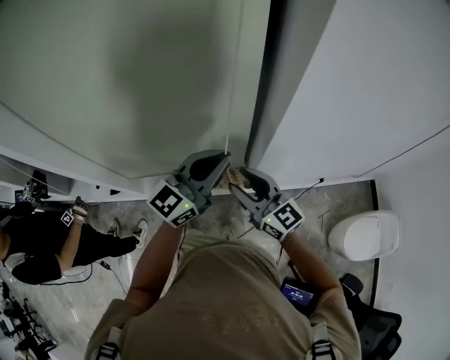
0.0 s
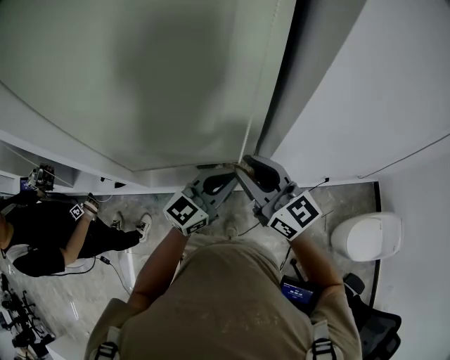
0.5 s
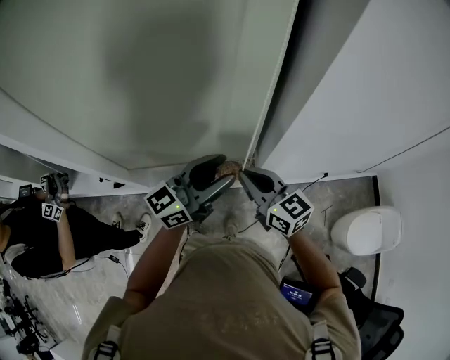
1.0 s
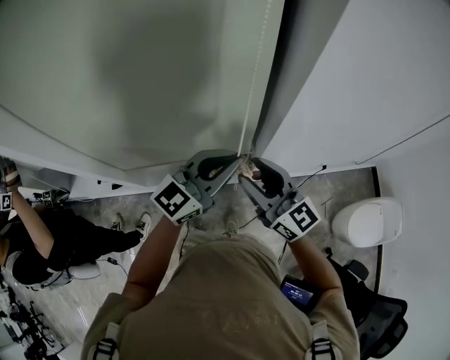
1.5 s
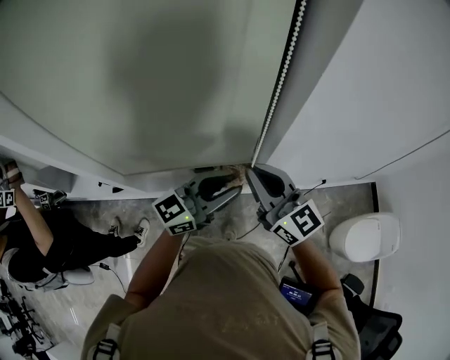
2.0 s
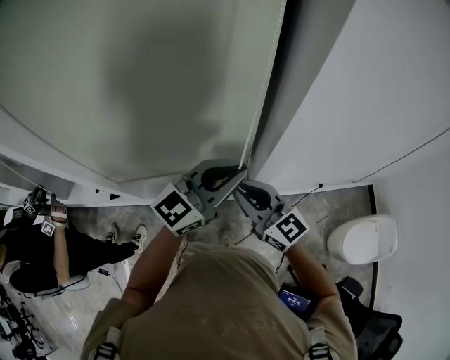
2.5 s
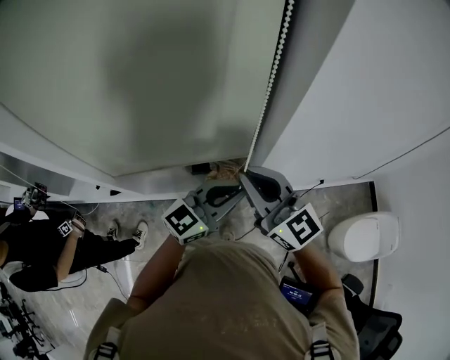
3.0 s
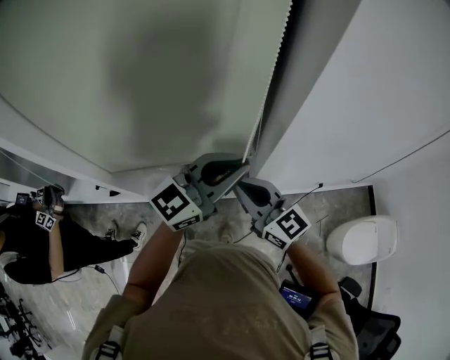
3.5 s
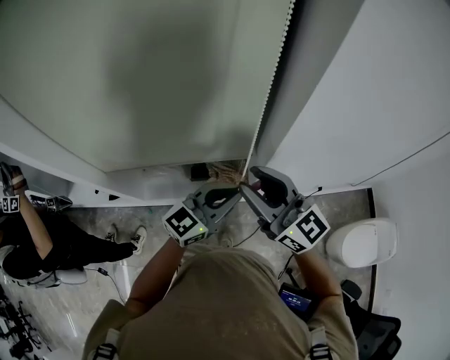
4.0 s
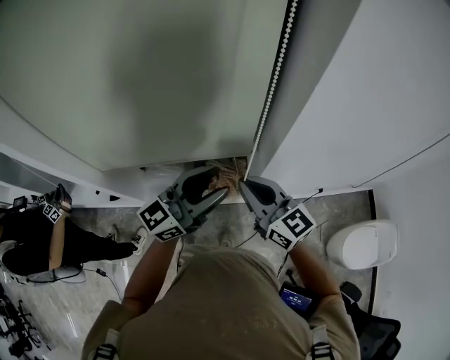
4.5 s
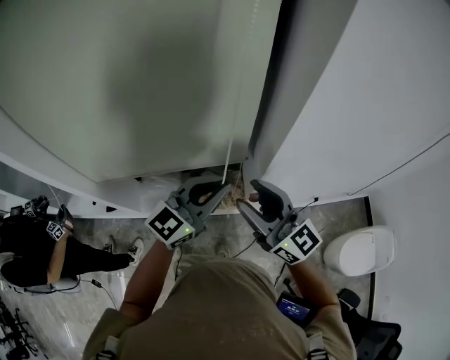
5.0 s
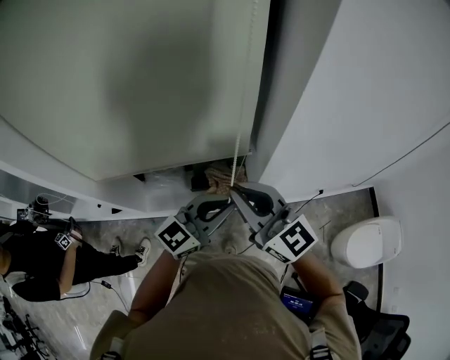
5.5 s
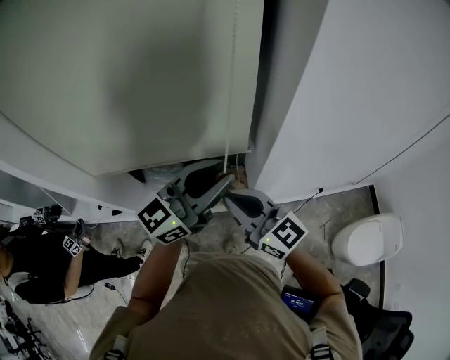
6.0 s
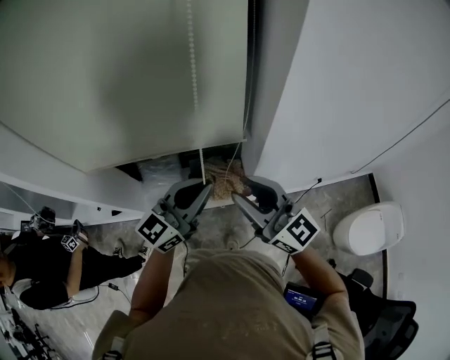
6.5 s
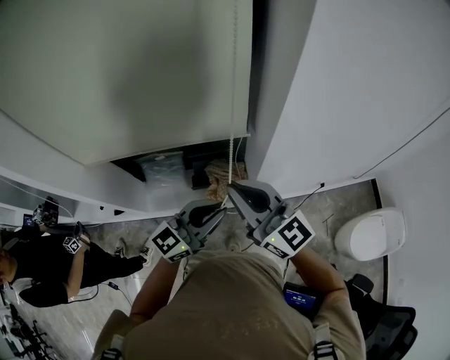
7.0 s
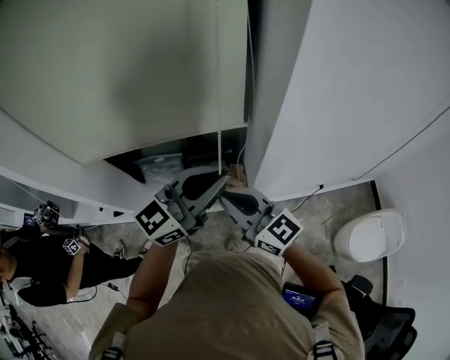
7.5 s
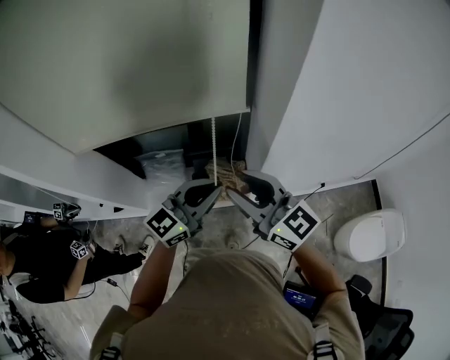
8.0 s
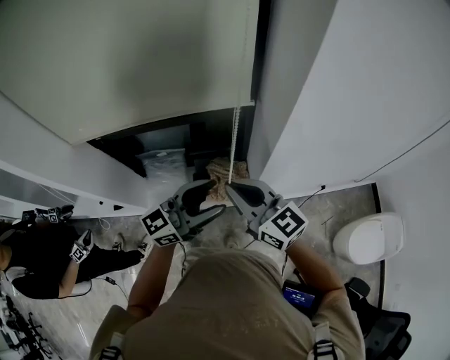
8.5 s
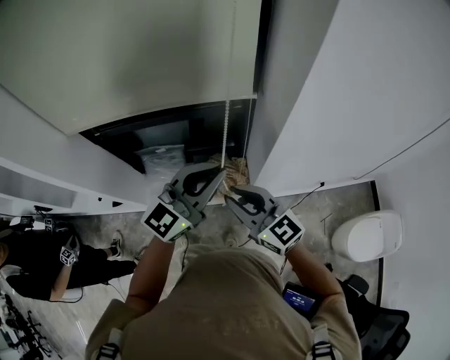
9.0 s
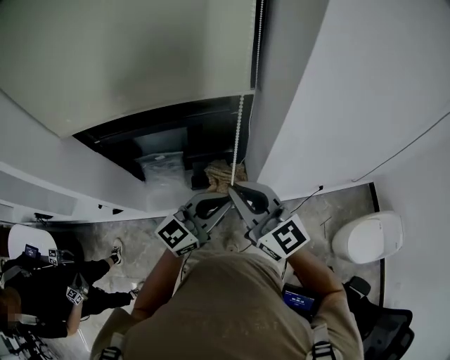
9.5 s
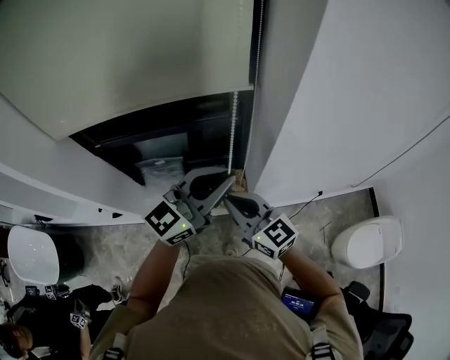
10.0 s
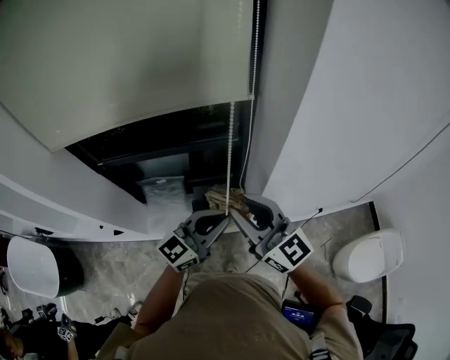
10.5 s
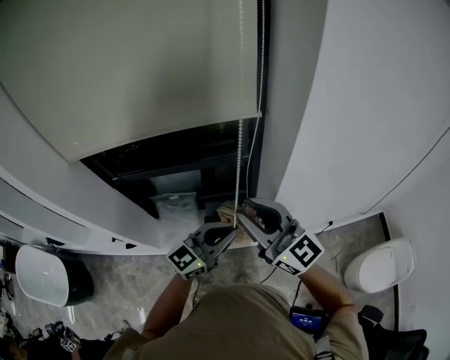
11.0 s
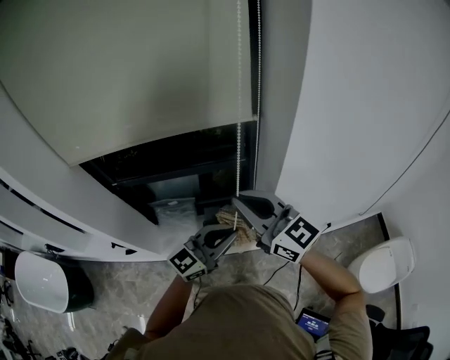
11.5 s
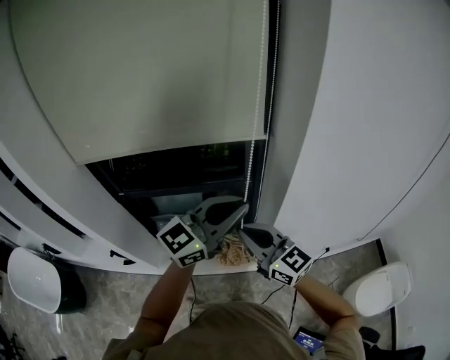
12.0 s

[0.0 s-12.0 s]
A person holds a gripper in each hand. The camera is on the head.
0.0 to 2.0 s: The right gripper moves up and down over about 10 cm, changing direction 2 times, and closes its fingers. Meanwhile the left gripper shifts some 5 cm backward, and opens and closes again.
2.0 to 4.0 s: The left gripper swings up and down, some 10 cm each way, with 3 reversals. Meanwhile the right gripper moves up and down over approximately 10 cm, changing direction 3 times, and opens.
4.0 to 6.0 s: The left gripper moves up and down over roughly 15 cm, changing direction 2 times, and opens. The right gripper moves up and down over about 5 cm, changing direction 2 times, and closes.
6.0 to 8.0 s: The right gripper opens, while the left gripper swings up and down, approximately 15 cm each way, with 2 reversals, and closes up.
8.0 to 10.0 s: The left gripper goes up and down, approximately 10 cm each way, reversing 2 times, and opens, then closes once more, while the right gripper swings up and down, about 5 cm each way, with 2 reversals, and closes its fingers.
10.0 to 12.0 s: The grippers both shift upward by roughly 10 cm. The right gripper opens, then closes again.

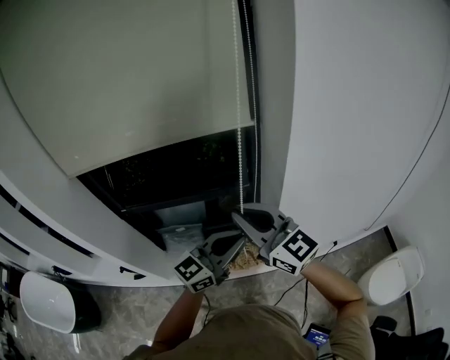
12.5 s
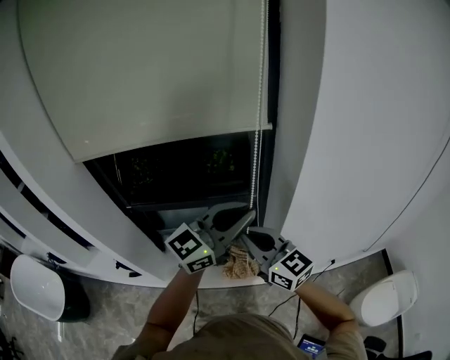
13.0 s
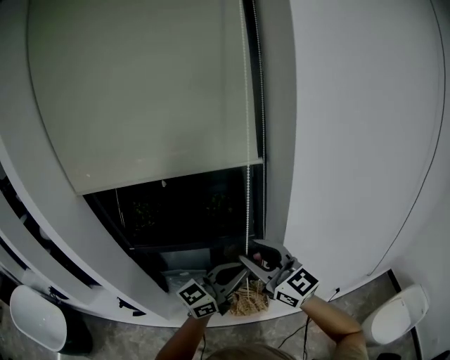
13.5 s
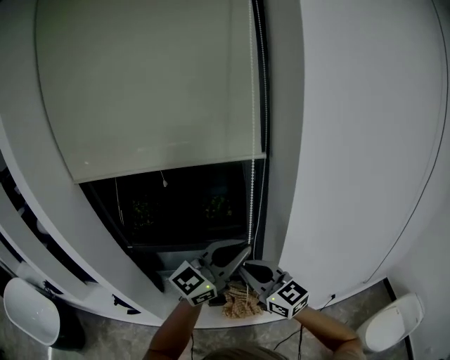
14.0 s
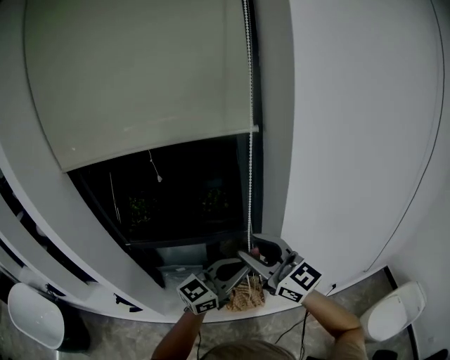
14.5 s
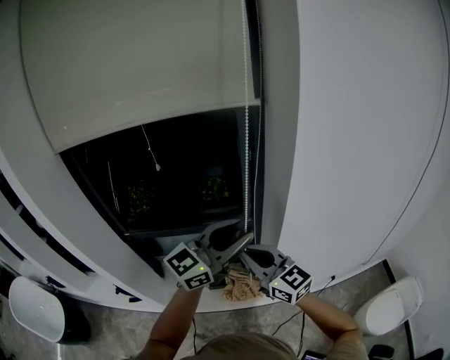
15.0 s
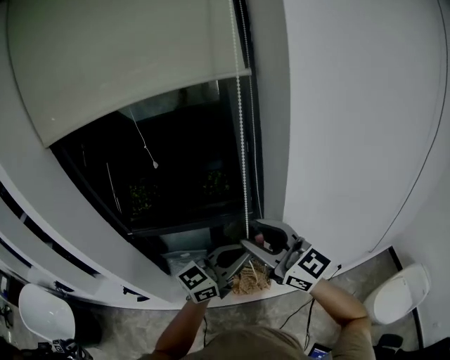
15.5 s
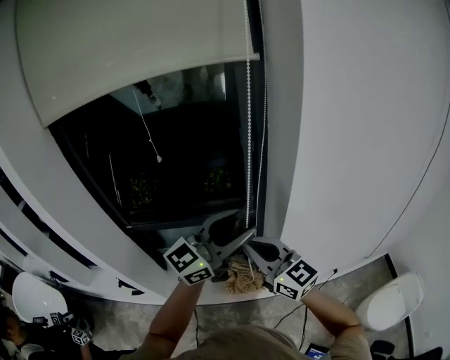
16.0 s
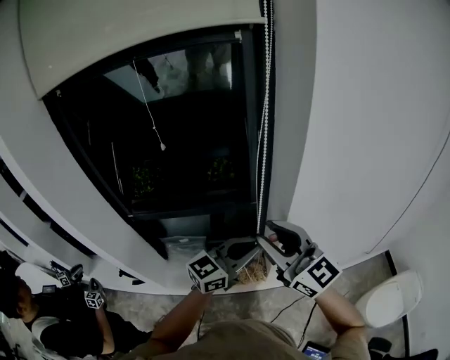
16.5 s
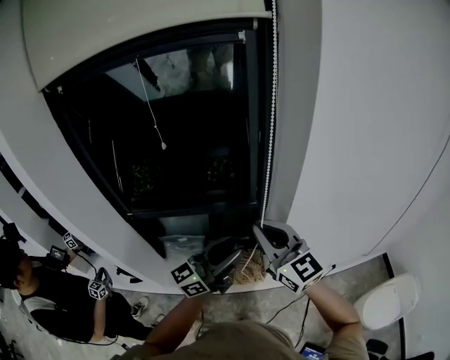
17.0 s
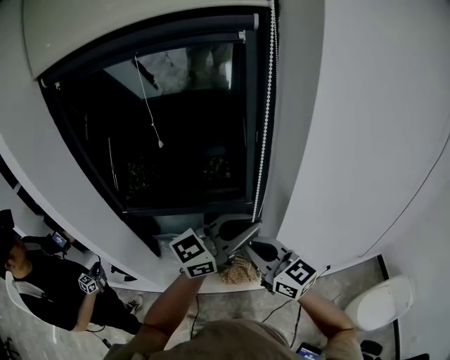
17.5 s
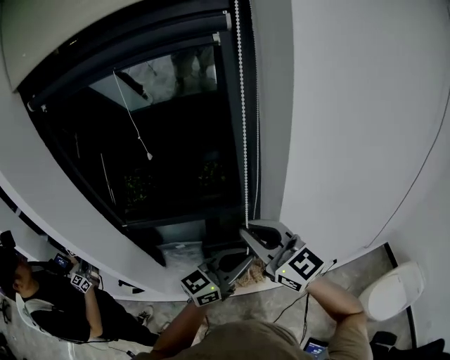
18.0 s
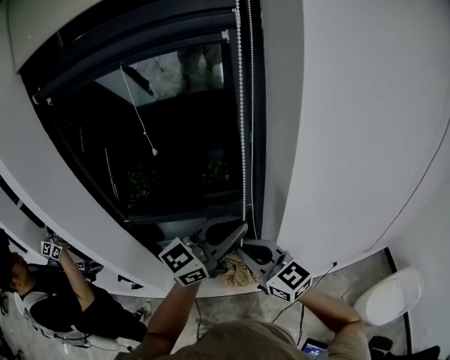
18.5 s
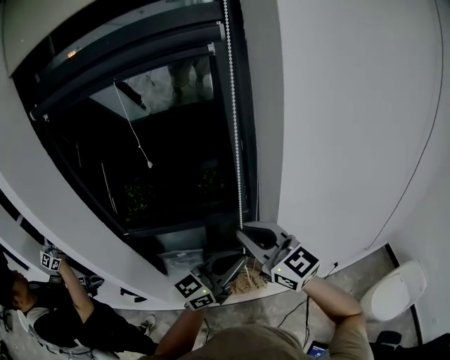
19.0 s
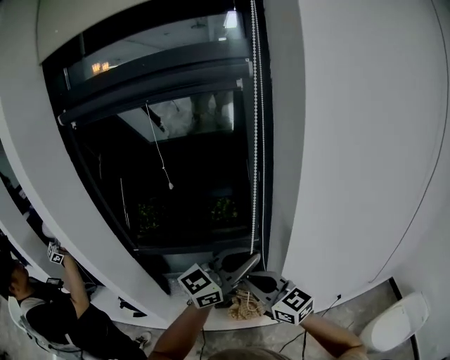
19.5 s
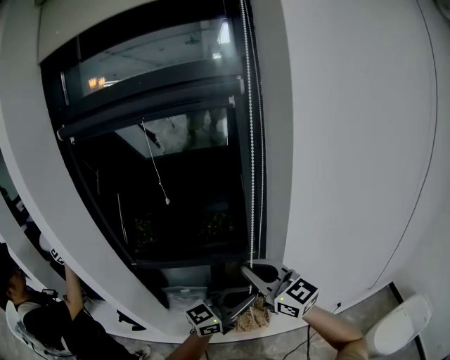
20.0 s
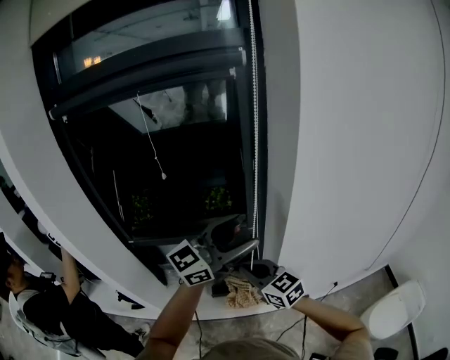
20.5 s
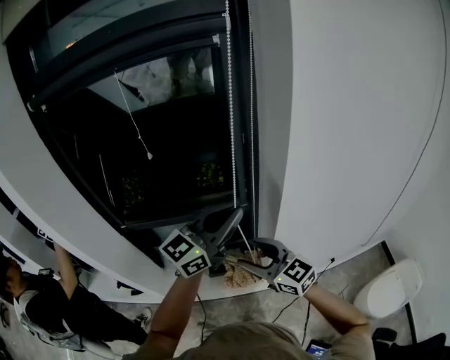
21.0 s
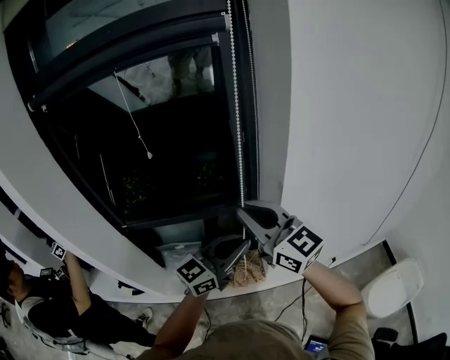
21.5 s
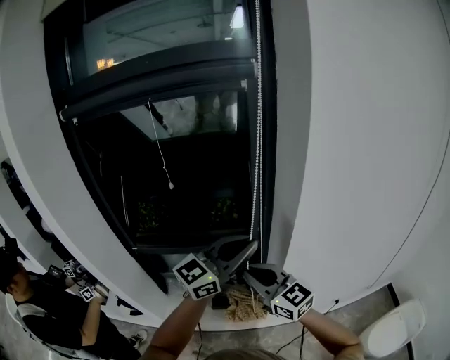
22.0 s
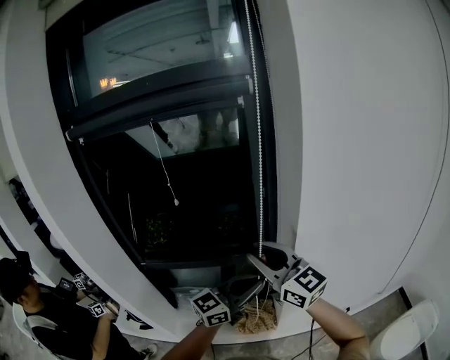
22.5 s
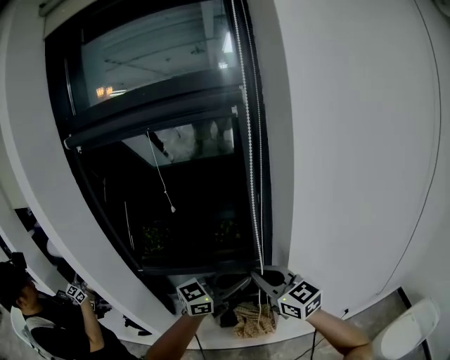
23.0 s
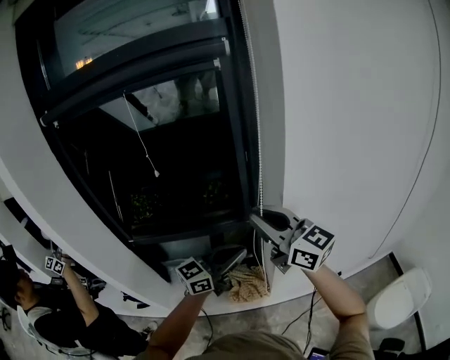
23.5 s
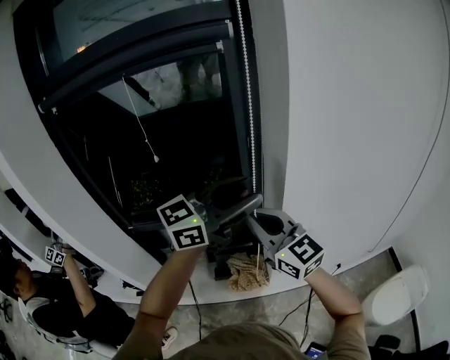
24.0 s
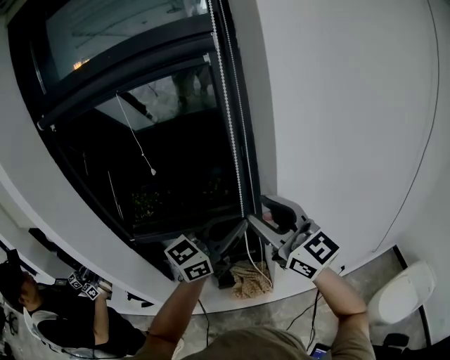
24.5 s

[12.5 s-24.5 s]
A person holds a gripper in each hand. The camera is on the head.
12.5 to 14.5 s: The right gripper swings up and down, about 10 cm each way, with 3 reversals, and opens its fingers; the left gripper swings up and down, roughly 15 cm each way, with 3 reversals.
14.5 to 16.5 s: The right gripper goes up and down, approximately 10 cm each way, reversing 3 times, and closes and opens again. Meanwhile the left gripper moves up and down over some 10 cm, changing direction 3 times, and opens and closes again.
16.5 to 18.5 s: The left gripper moves up and down over approximately 10 cm, changing direction 2 times, and opens and closes again. The right gripper swings up and down, about 5 cm each way, with 2 reversals, and closes its fingers.
18.5 to 20.5 s: The left gripper moves up and down over roughly 15 cm, changing direction 3 times, and opens its fingers. The right gripper moves up and down over approximately 15 cm, changing direction 3 times.
20.5 to 22.5 s: The right gripper goes up and down, about 15 cm each way, reversing 2 times, changes its angle by some 20 degrees, and opens its fingers. Meanwhile the left gripper goes up and down, some 15 cm each way, reversing 2 times, and closes its fingers.
22.5 to 24.5 s: The right gripper goes up and down, about 10 cm each way, reversing 3 times, and closes, then reopens; the left gripper swings up and down, approximately 20 cm each way, with 2 reversals, and opens, then closes once more.

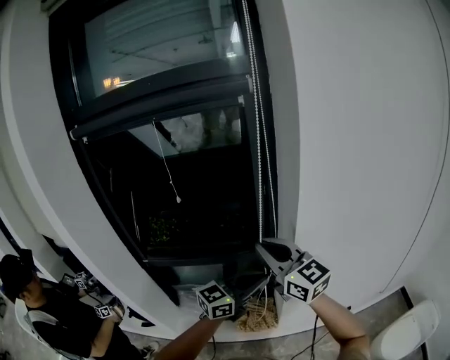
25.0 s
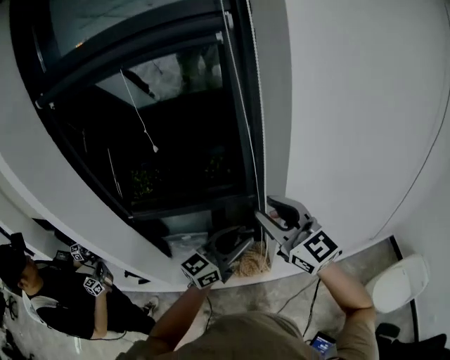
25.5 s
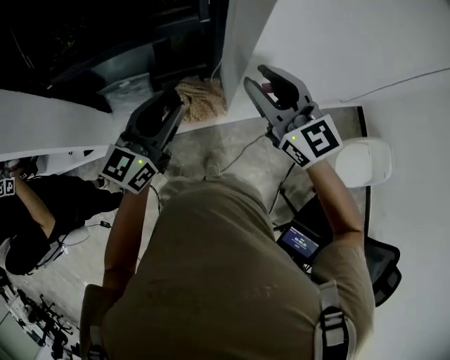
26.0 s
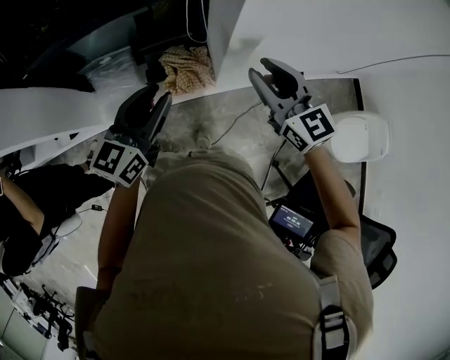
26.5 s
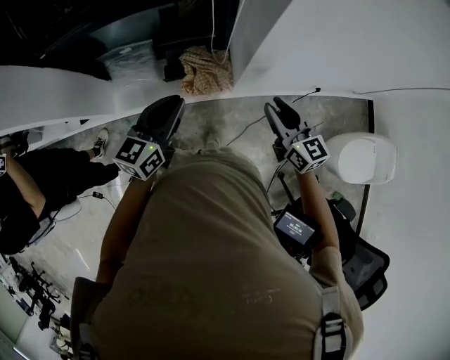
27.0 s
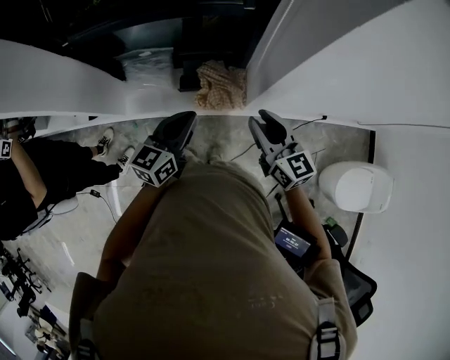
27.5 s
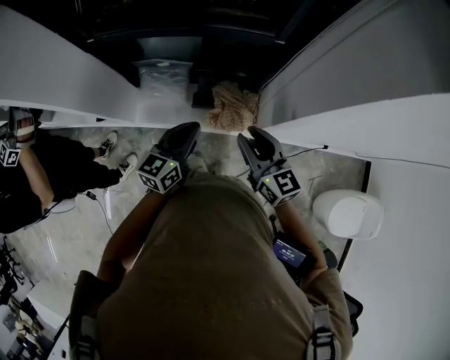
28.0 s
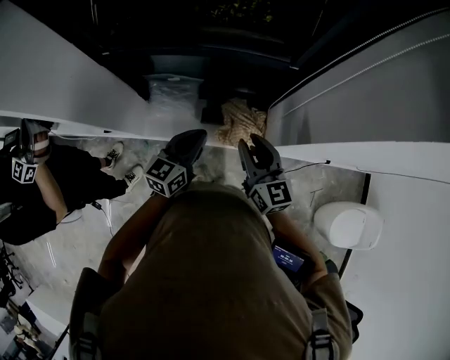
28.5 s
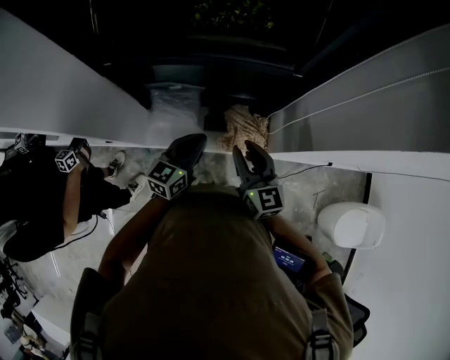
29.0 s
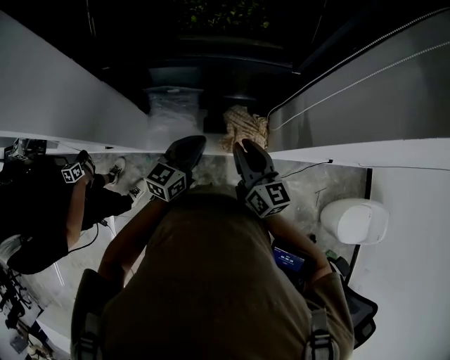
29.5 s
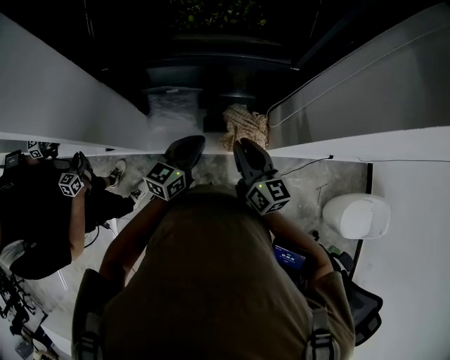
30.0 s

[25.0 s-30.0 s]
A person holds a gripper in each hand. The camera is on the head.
25.0 to 27.5 s: The grippers both shift downward by roughly 35 cm. The right gripper turns by about 30 degrees, and opens up, while the left gripper swivels about 40 degrees, and opens, then closes again.
27.5 to 30.0 s: The right gripper goes approximately 25 cm to the left. Meanwhile the left gripper moves to the left and forward, some 20 cm.
